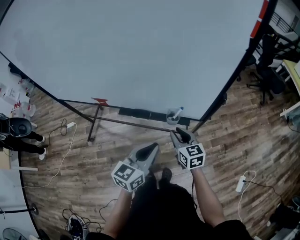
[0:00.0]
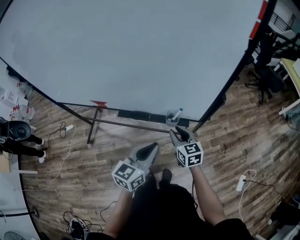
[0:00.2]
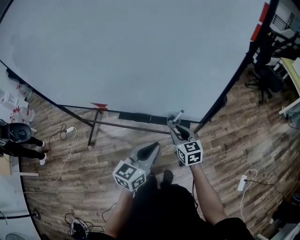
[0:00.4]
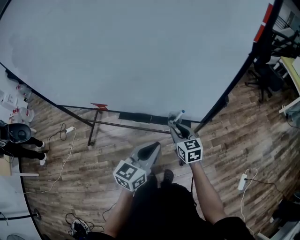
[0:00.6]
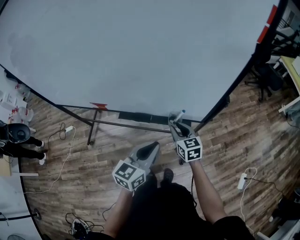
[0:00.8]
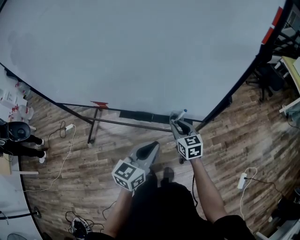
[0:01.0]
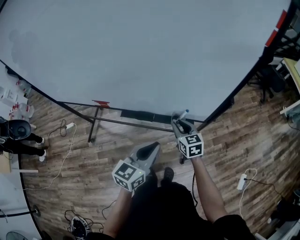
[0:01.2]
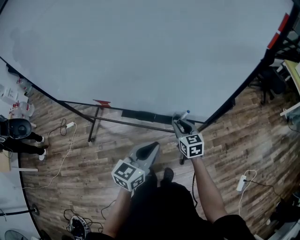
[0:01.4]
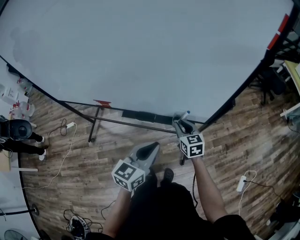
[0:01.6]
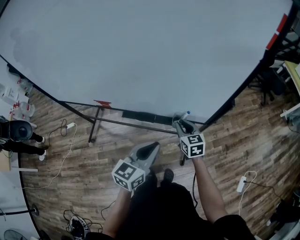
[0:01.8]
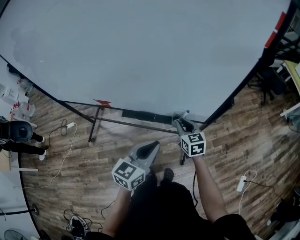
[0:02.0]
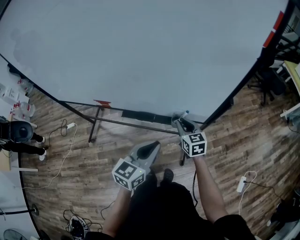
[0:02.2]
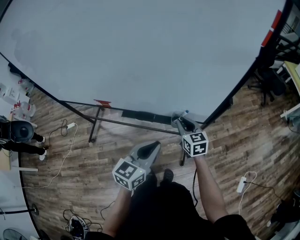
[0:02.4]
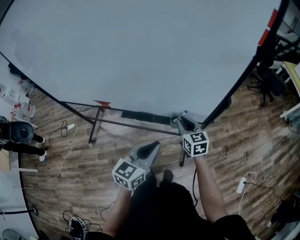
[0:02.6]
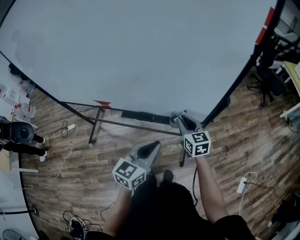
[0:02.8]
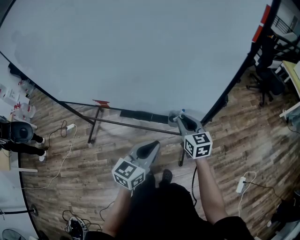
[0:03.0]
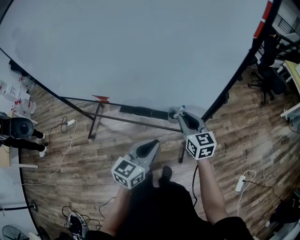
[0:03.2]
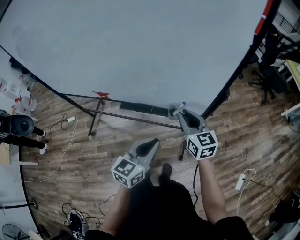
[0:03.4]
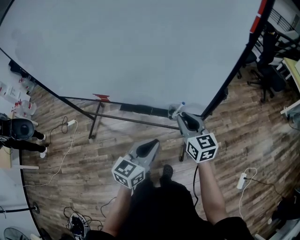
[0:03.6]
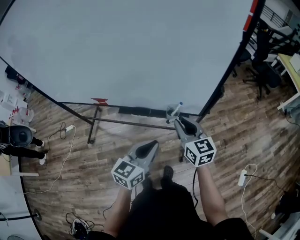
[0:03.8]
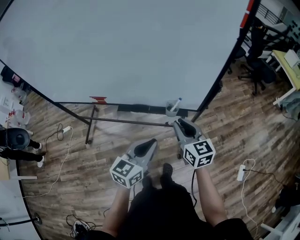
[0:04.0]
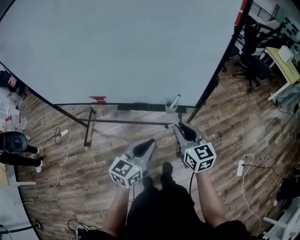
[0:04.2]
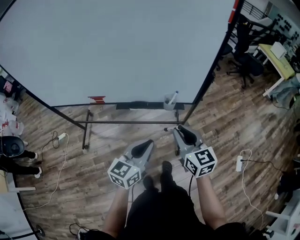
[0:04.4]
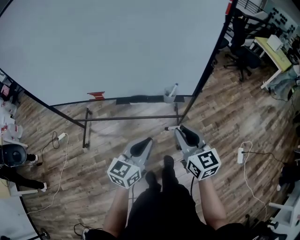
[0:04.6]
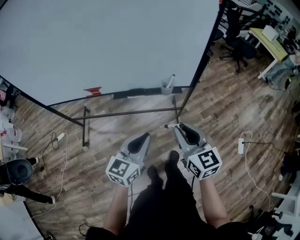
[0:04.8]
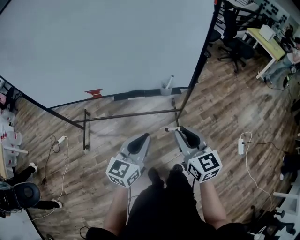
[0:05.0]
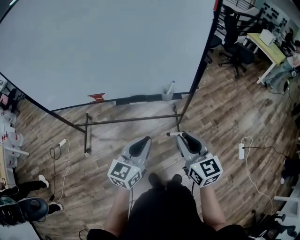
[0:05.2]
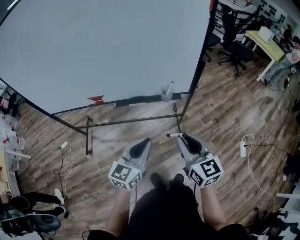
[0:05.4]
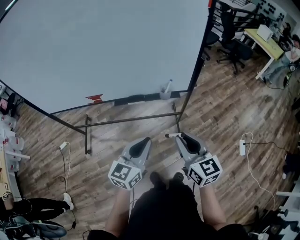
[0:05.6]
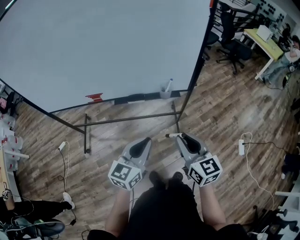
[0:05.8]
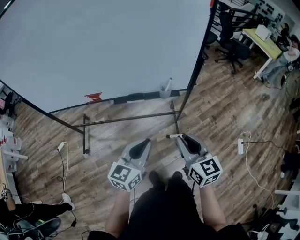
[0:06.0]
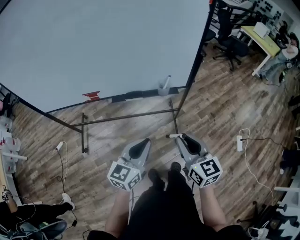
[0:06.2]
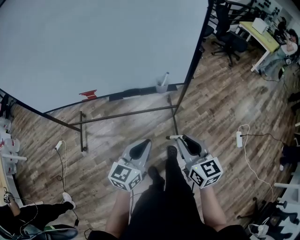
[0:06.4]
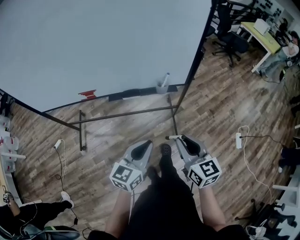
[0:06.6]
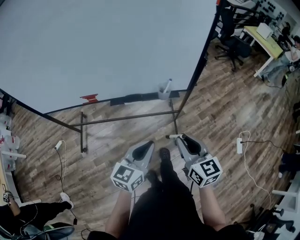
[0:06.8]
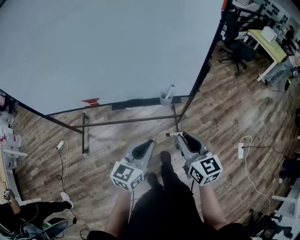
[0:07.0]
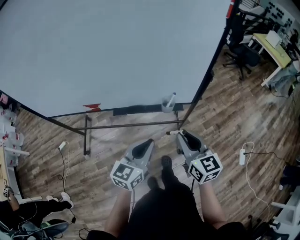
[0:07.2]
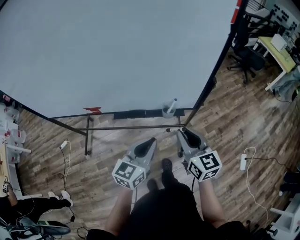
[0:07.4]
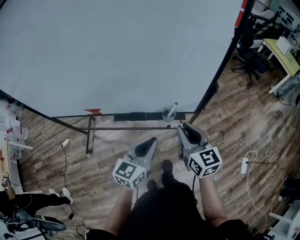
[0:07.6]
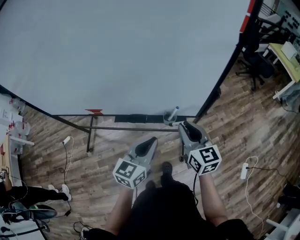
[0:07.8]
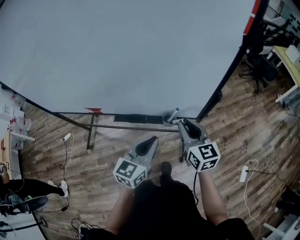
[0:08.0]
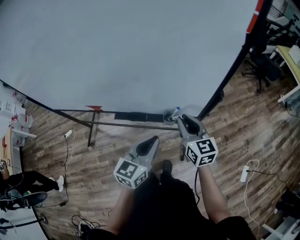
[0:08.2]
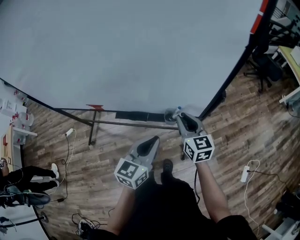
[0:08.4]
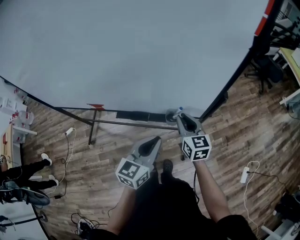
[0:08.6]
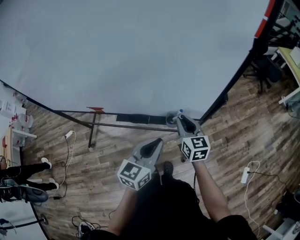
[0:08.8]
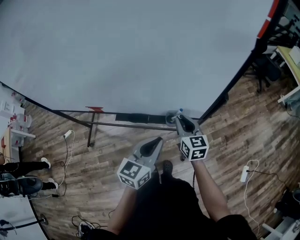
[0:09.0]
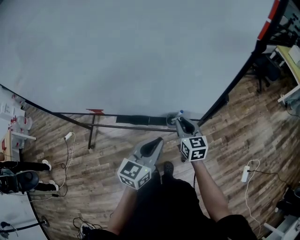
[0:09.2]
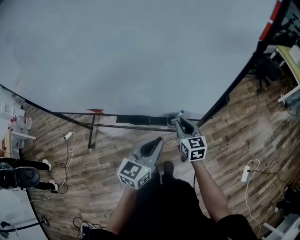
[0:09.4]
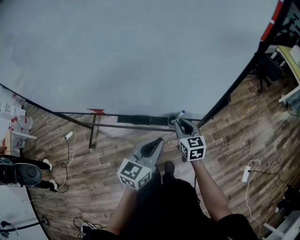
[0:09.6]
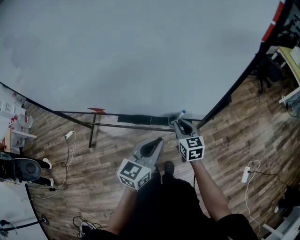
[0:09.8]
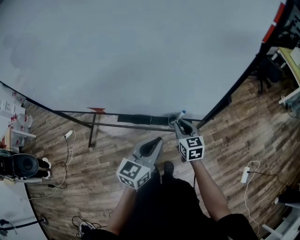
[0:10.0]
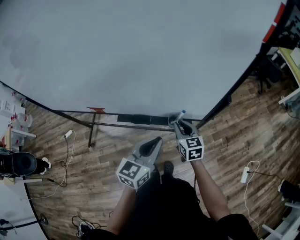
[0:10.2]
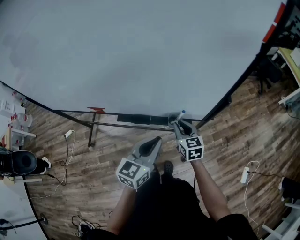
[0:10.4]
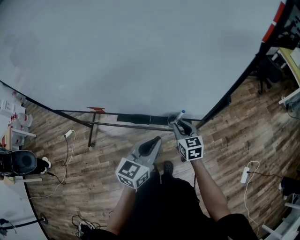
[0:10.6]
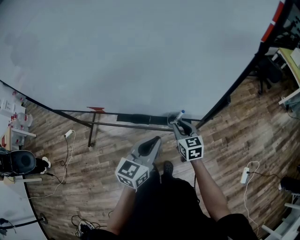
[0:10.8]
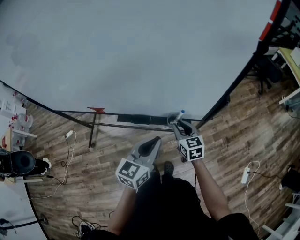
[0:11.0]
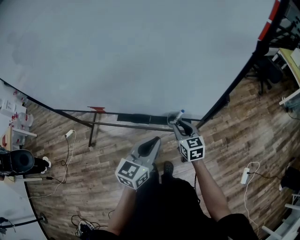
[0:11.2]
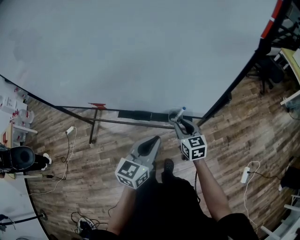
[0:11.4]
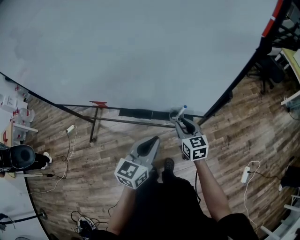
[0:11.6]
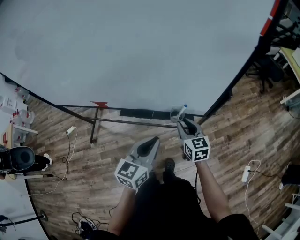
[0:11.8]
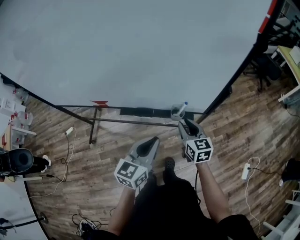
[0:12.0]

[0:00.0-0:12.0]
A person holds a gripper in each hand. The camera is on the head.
0:00.0 to 0:01.6: The right gripper moves forward, roughly 5 cm.
0:01.6 to 0:03.0: The right gripper goes approximately 10 cm upward.
0:03.0 to 0:04.4: The right gripper travels backward and upward by about 20 cm; the left gripper shifts some 10 cm backward and to the left.
0:04.4 to 0:06.0: The right gripper goes roughly 10 cm backward. The left gripper moves backward, approximately 5 cm.
0:06.0 to 0:07.6: Both grippers move forward, about 20 cm.
0:07.6 to 0:09.0: The right gripper shifts some 15 cm forward and downward; the left gripper moves about 5 cm.
0:09.0 to 0:10.4: The right gripper shifts about 5 cm downward.
0:10.4 to 0:12.0: The right gripper shifts by roughly 5 cm; the left gripper moves some 5 cm.

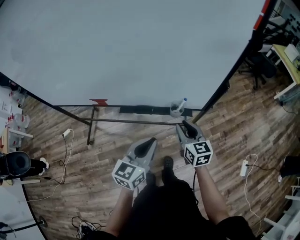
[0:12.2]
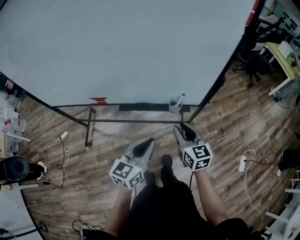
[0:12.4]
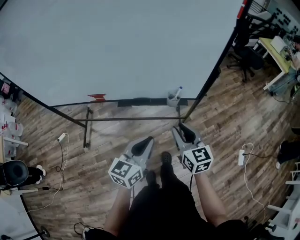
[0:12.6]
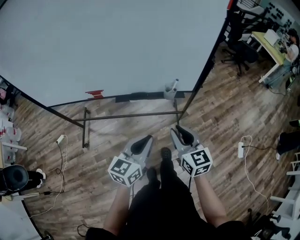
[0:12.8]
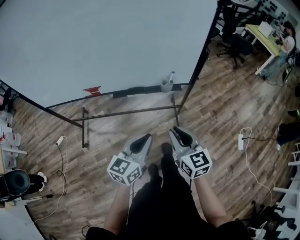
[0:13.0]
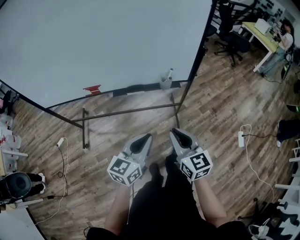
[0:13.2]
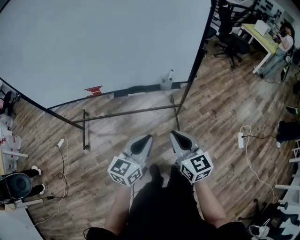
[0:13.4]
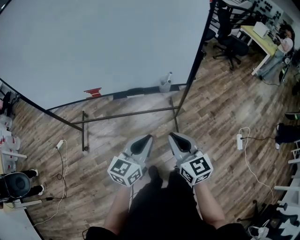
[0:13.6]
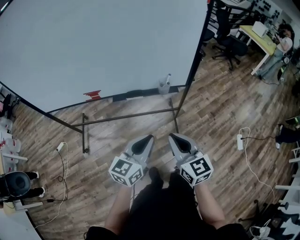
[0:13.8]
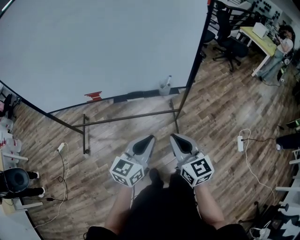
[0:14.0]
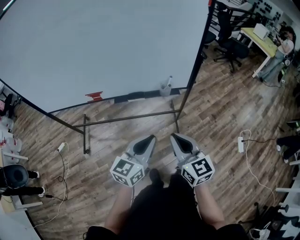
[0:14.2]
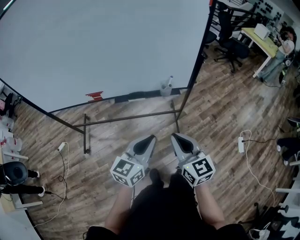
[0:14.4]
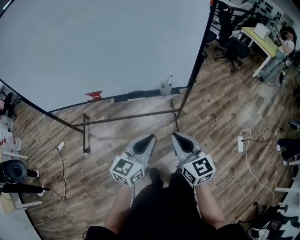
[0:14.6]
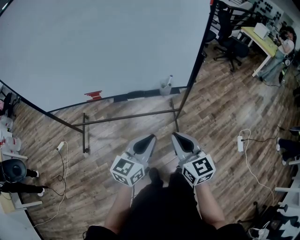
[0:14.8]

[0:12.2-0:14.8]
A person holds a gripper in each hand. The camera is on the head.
0:12.2 to 0:13.4: The right gripper travels backward by approximately 25 cm, and closes up, while the left gripper goes about 15 cm backward.
0:13.4 to 0:14.8: The grippers stay close to where they were, moving slightly.

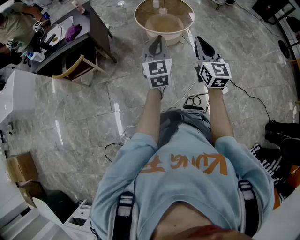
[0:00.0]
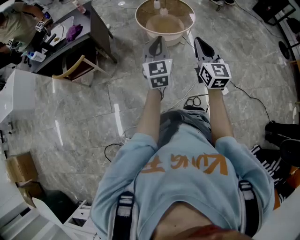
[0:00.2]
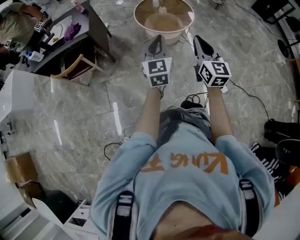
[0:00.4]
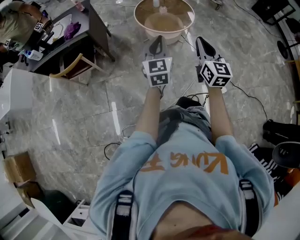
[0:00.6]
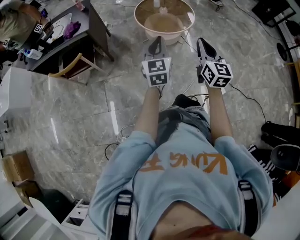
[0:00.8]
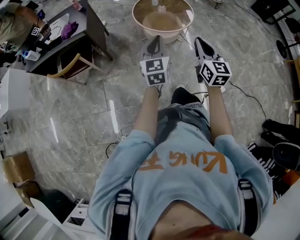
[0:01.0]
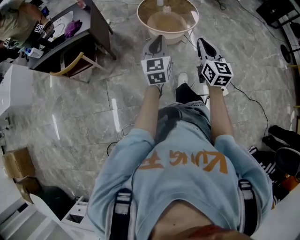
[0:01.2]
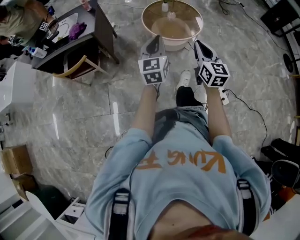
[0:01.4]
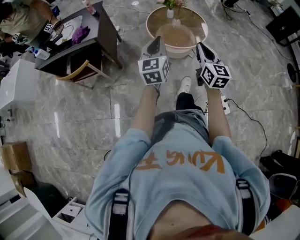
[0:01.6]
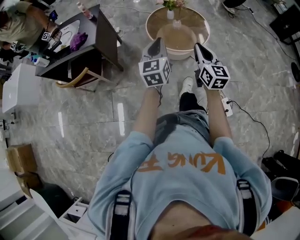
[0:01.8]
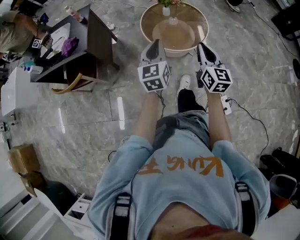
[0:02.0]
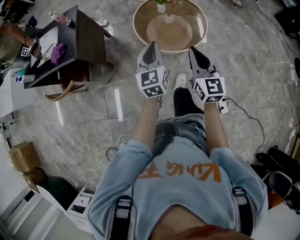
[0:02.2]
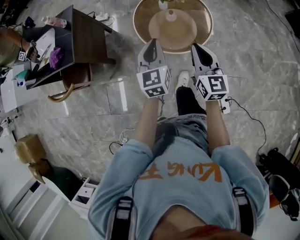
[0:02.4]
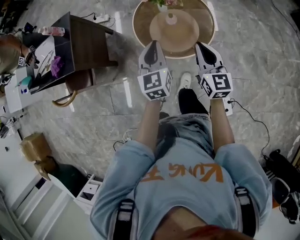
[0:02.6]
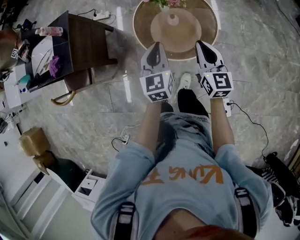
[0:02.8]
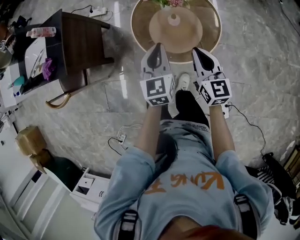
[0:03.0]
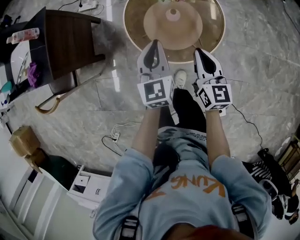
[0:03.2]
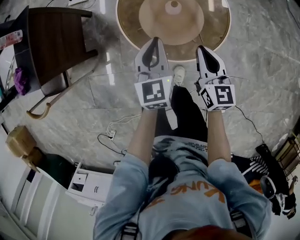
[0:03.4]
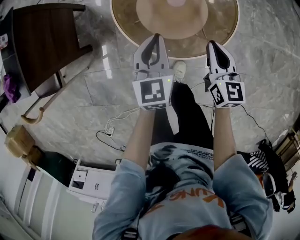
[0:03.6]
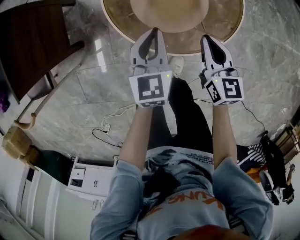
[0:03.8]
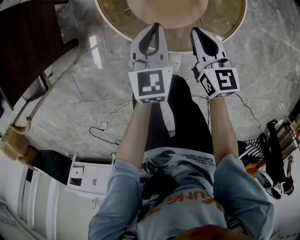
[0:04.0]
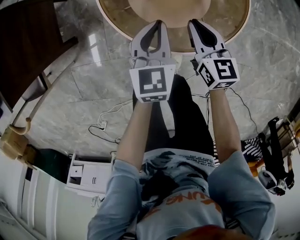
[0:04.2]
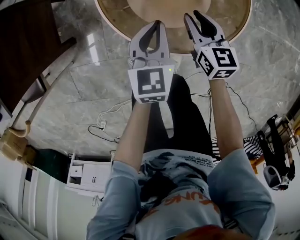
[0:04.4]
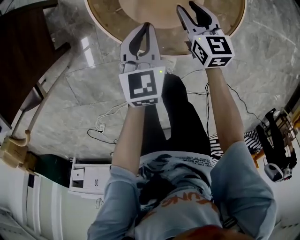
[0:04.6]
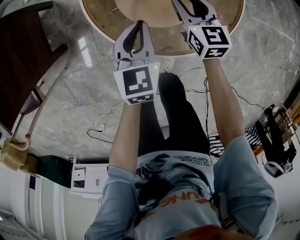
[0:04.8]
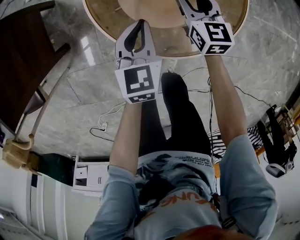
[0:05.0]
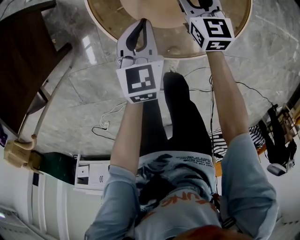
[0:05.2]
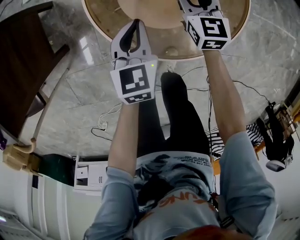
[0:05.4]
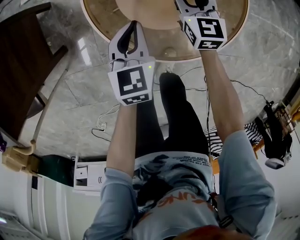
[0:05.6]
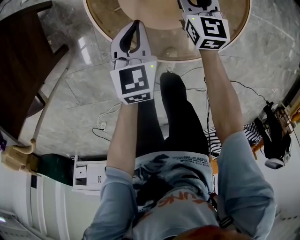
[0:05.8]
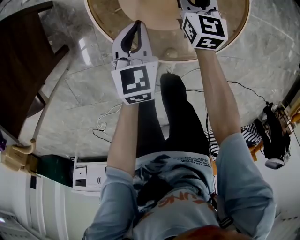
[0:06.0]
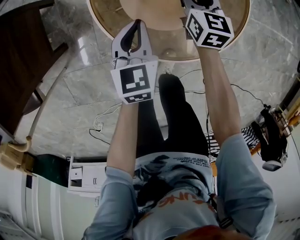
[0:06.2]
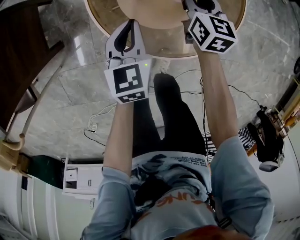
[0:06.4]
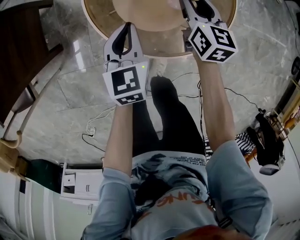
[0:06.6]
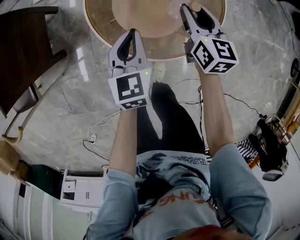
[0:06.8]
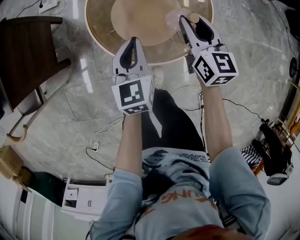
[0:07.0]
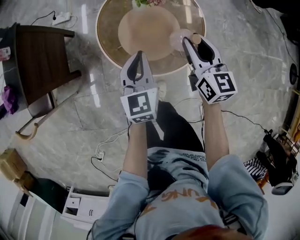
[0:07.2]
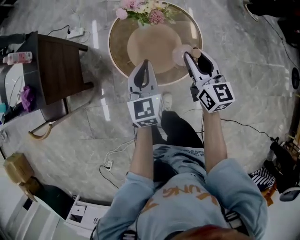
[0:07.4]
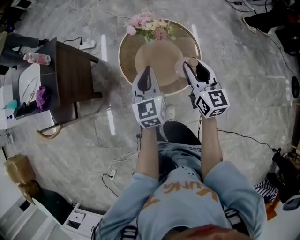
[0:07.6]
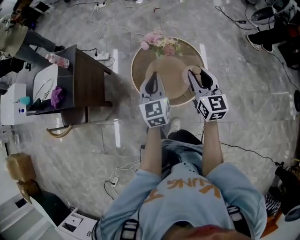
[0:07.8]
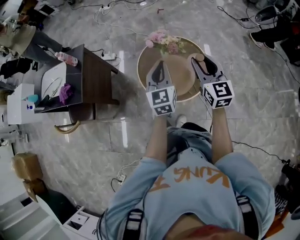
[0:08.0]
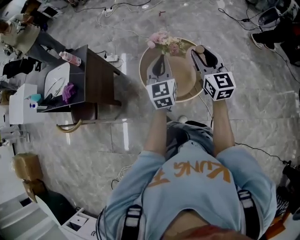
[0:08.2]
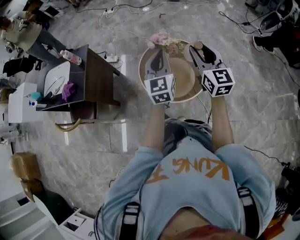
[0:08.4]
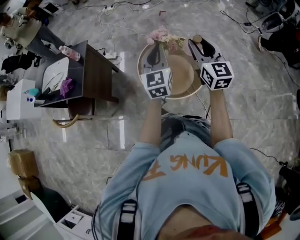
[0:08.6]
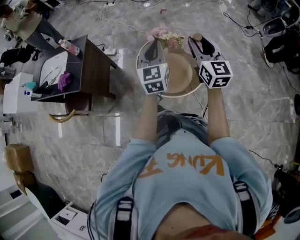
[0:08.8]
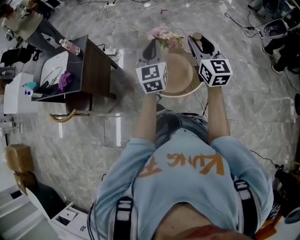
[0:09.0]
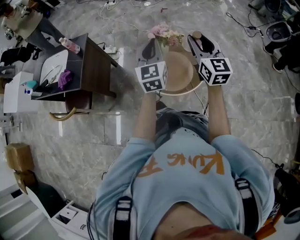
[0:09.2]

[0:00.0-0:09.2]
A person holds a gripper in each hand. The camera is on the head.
0:00.0 to 0:01.6: Both grippers move forward, roughly 15 cm.
0:01.6 to 0:03.0: The left gripper is displaced forward, to the right and downward by about 40 cm, and rotates about 20 degrees. The right gripper shifts approximately 40 cm forward and downward.
0:03.0 to 0:04.6: The right gripper moves downward and forward, some 35 cm, and opens up. The left gripper moves downward, about 30 cm.
0:04.6 to 0:06.2: The left gripper ends up approximately 5 cm from where it was. The right gripper heads forward, covering some 10 cm.
0:06.2 to 0:07.6: The right gripper travels upward and backward by some 40 cm, and changes its angle by about 20 degrees, while the left gripper heads upward, covering approximately 35 cm, and changes its angle by roughly 20 degrees.
0:07.6 to 0:09.2: Both grippers move upward, about 15 cm.
